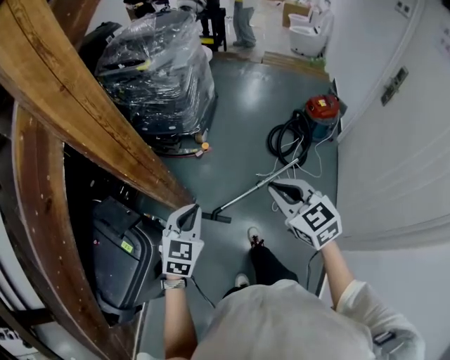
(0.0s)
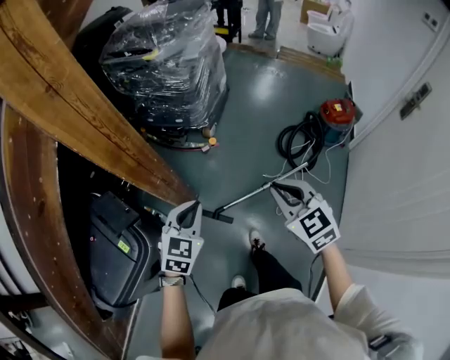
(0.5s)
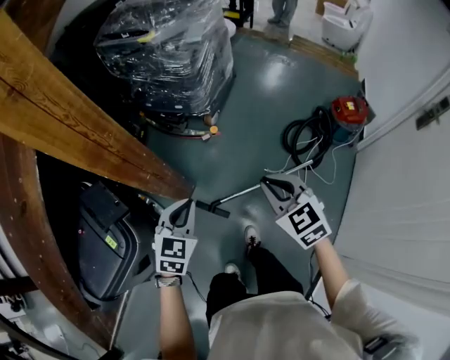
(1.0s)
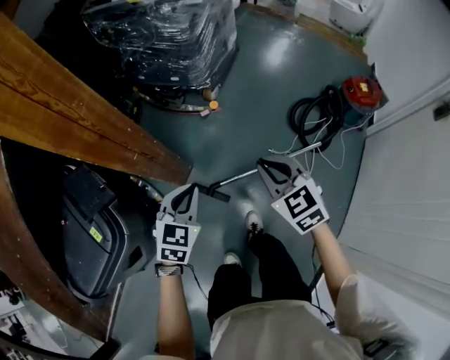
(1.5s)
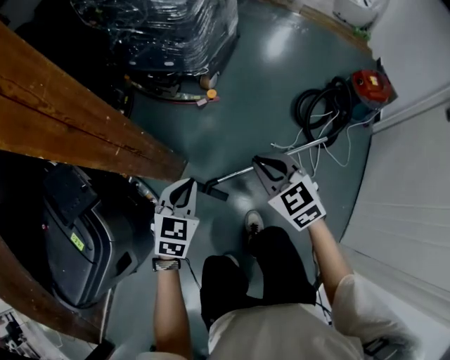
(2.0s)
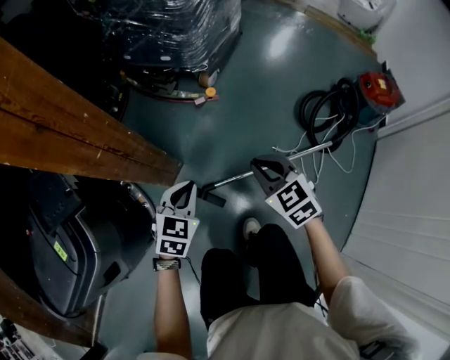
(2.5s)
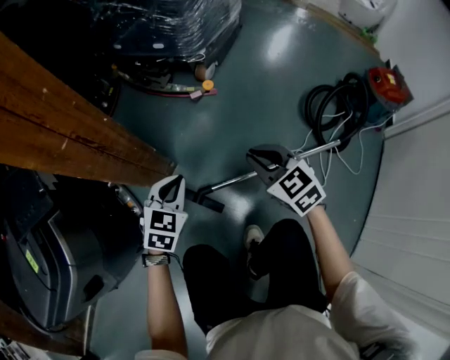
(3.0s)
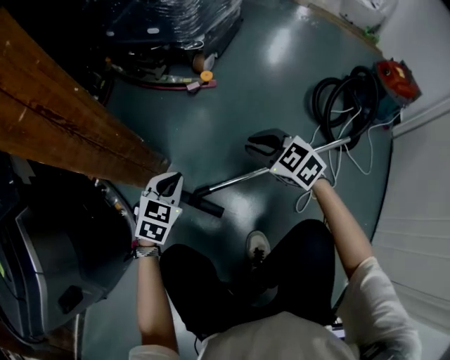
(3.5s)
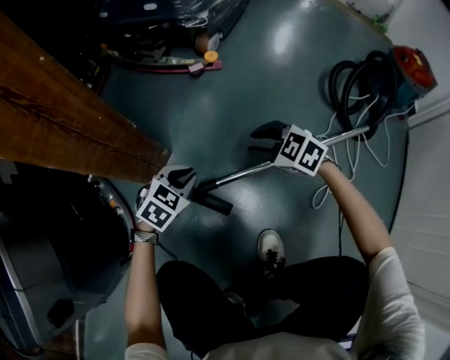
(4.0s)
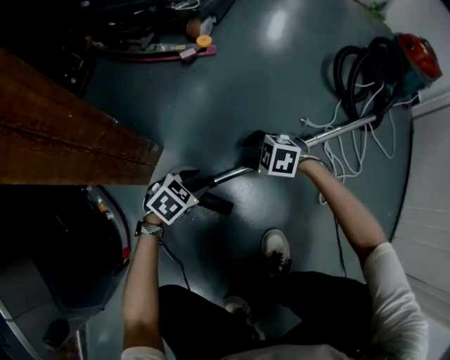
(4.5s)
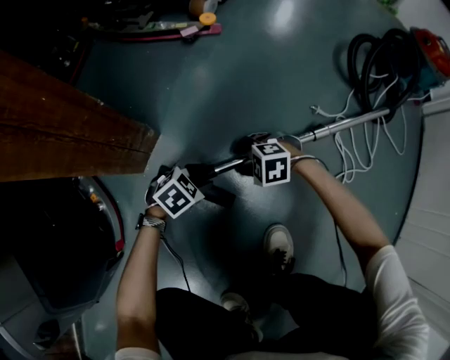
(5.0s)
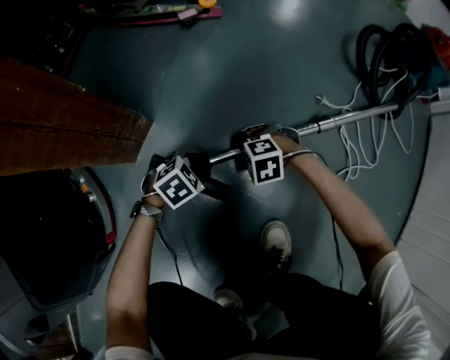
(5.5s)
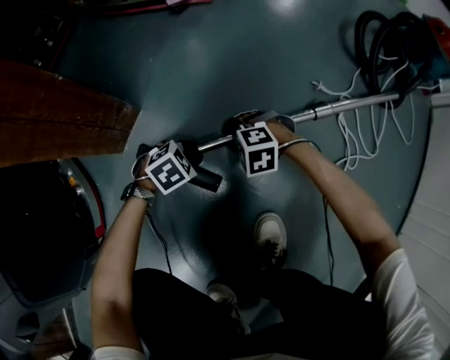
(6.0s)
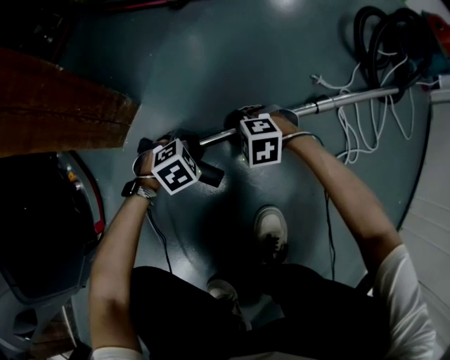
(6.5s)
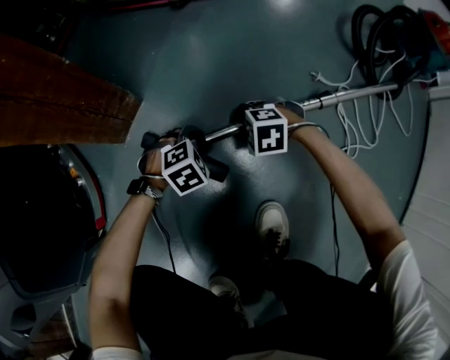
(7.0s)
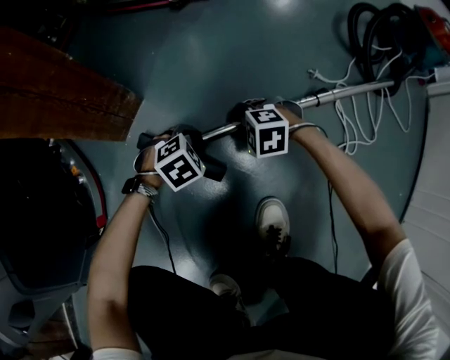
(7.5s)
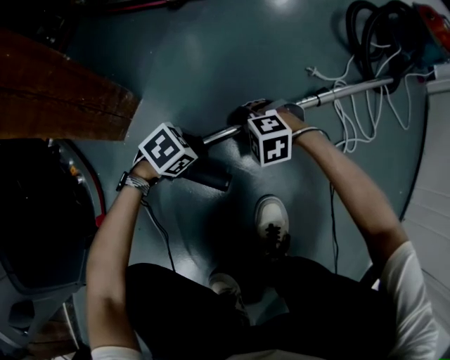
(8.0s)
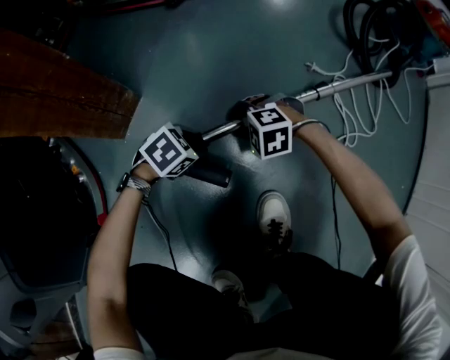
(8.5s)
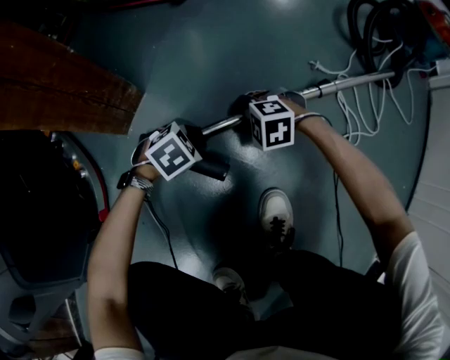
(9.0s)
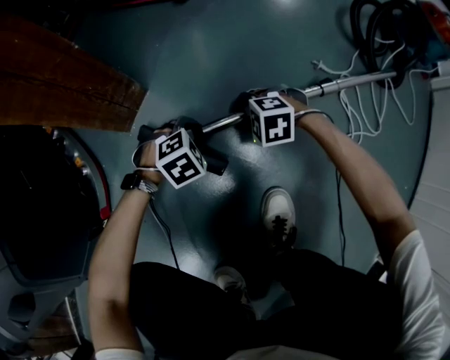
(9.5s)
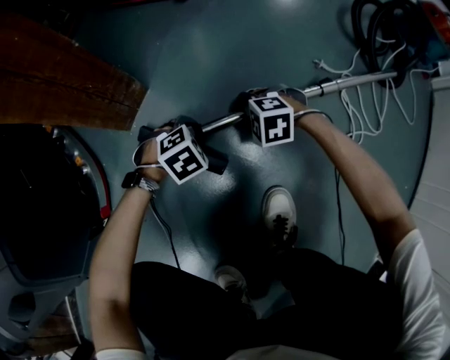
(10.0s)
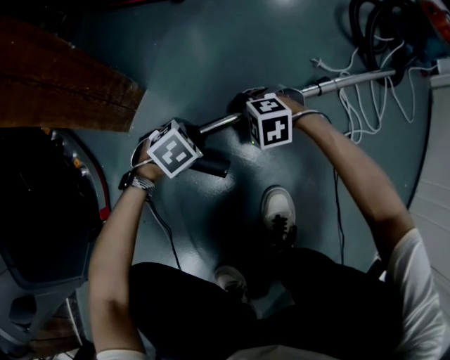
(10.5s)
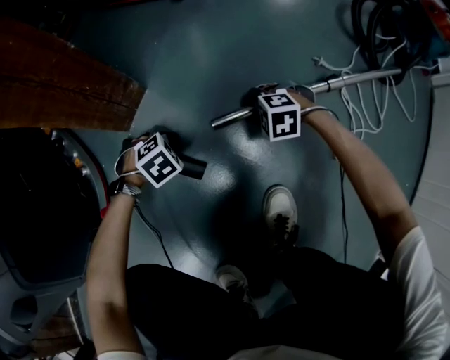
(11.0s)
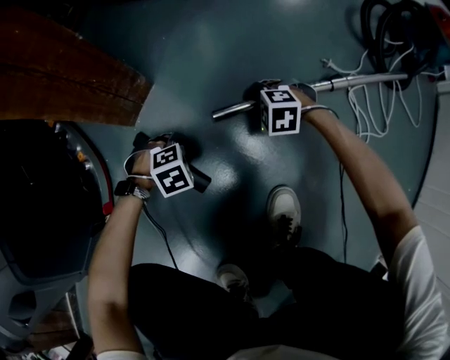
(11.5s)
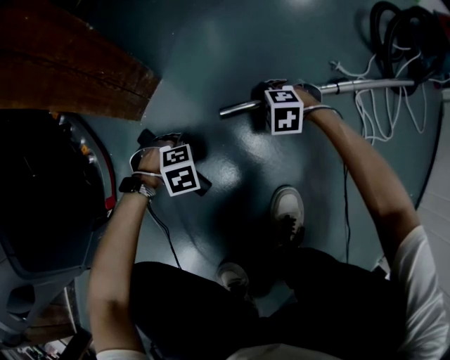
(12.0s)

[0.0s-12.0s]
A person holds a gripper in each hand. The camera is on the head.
0.0s to 2.0s: The grippers both shift downward and forward by roughly 35 cm.
2.0s to 4.0s: The two grippers go roughly 40 cm downward. The right gripper turns by some 30 degrees, and opens its fingers; the left gripper changes its angle by some 20 degrees.
4.0s to 6.0s: The two grippers go some 25 cm downward. The left gripper swivels roughly 30 degrees, and opens its fingers. The right gripper changes its angle by about 40 degrees.
6.0s to 8.0s: The left gripper ends up roughly 5 cm from where it was.
8.0s to 10.0s: The left gripper changes its angle by roughly 30 degrees.
10.0s to 12.0s: The left gripper moves roughly 10 cm; the right gripper shifts by about 5 cm.

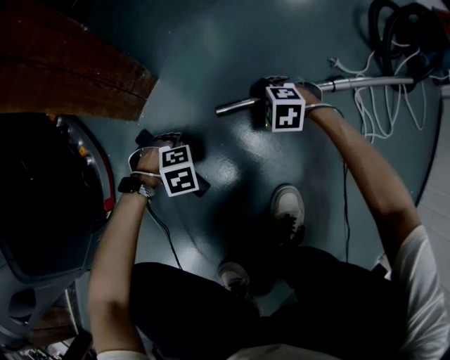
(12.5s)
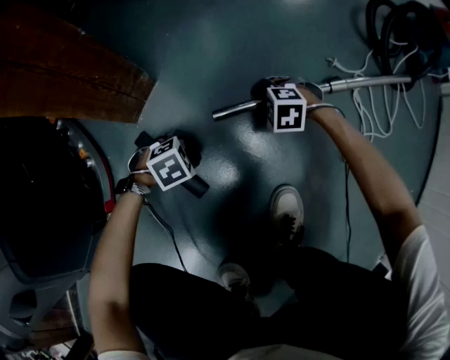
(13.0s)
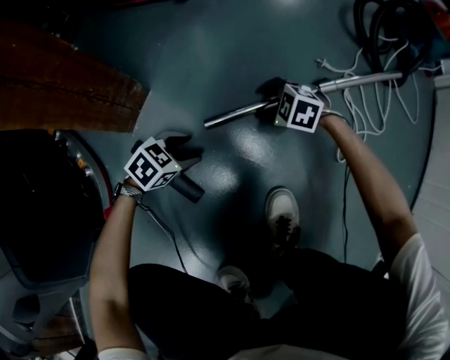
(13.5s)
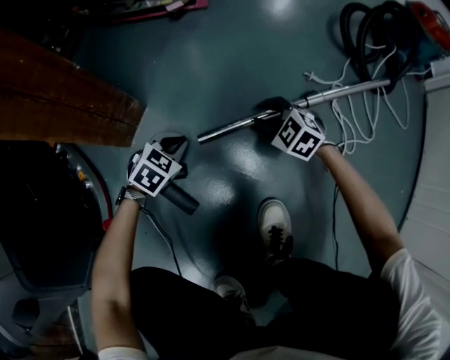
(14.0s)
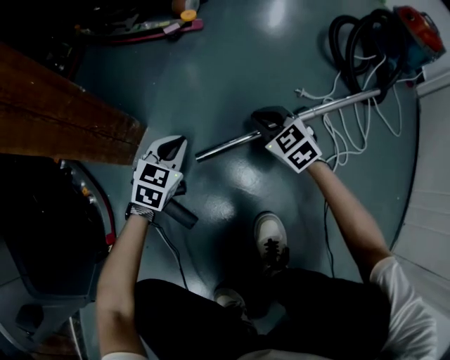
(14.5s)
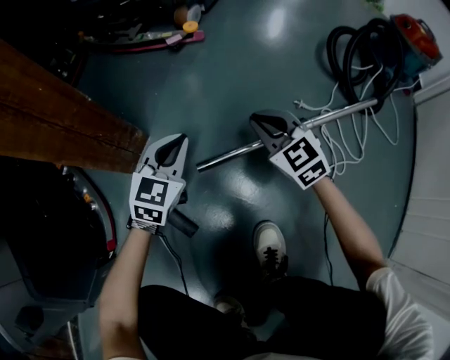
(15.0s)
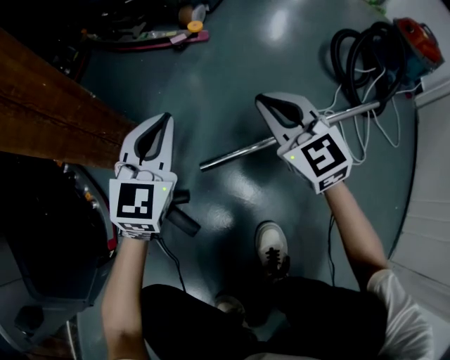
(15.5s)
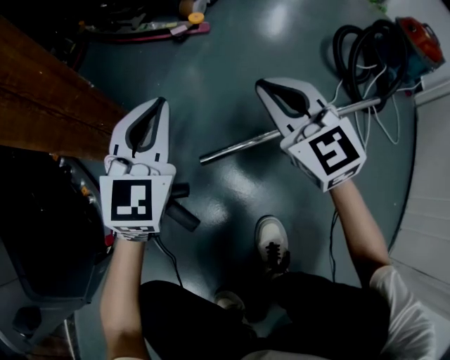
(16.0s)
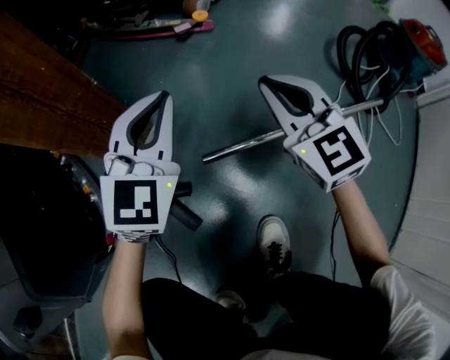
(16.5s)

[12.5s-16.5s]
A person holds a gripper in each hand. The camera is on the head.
12.5s to 14.5s: The left gripper ends up about 20 cm from where it was, points its fingers approximately 50 degrees further upward, and closes up. The right gripper travels upward by some 15 cm, points its fingers approximately 30 degrees further upward, and closes up.
14.5s to 16.5s: Both grippers travel together upward, roughly 20 cm. The left gripper rotates approximately 30 degrees, while the right gripper rotates about 20 degrees.

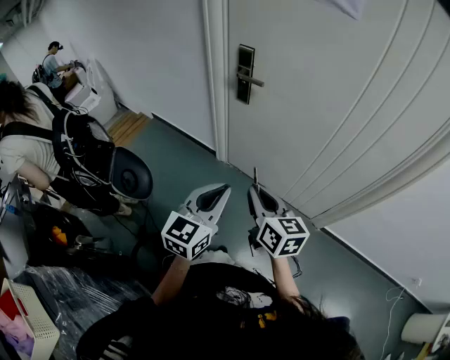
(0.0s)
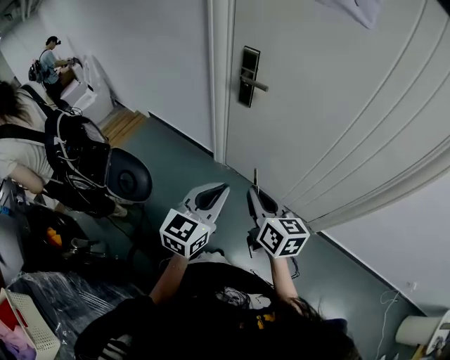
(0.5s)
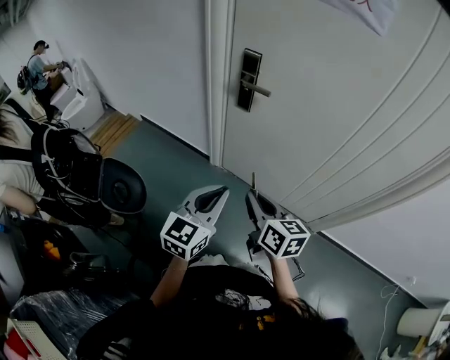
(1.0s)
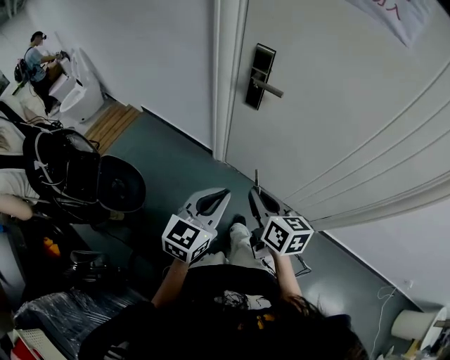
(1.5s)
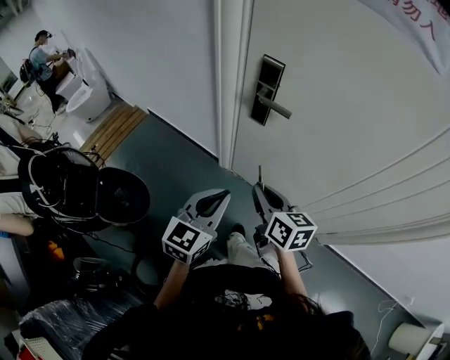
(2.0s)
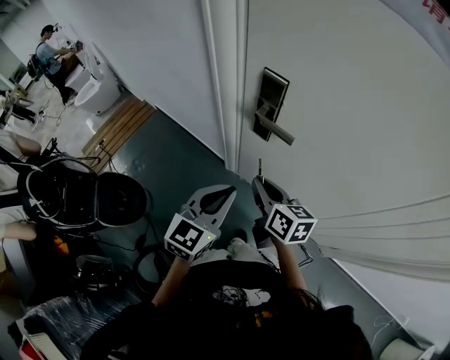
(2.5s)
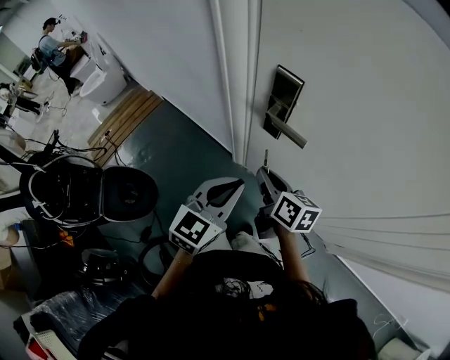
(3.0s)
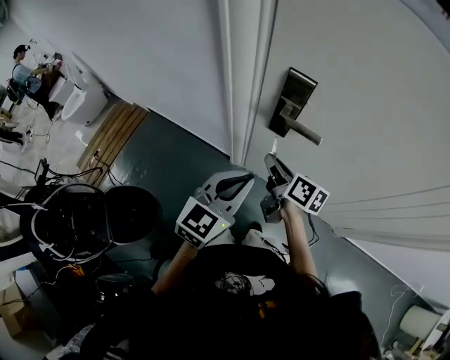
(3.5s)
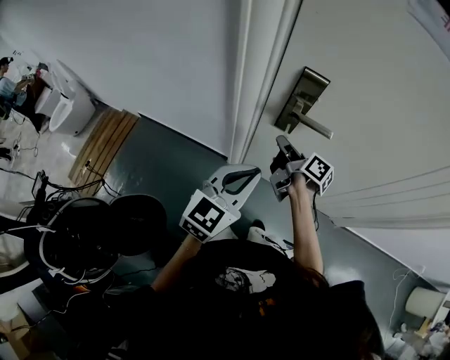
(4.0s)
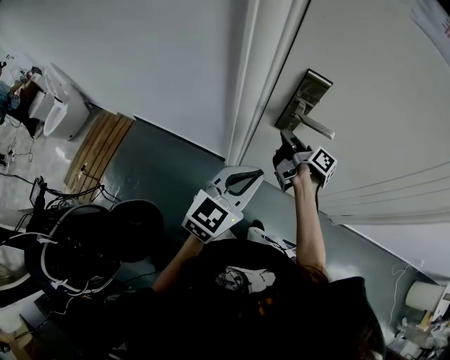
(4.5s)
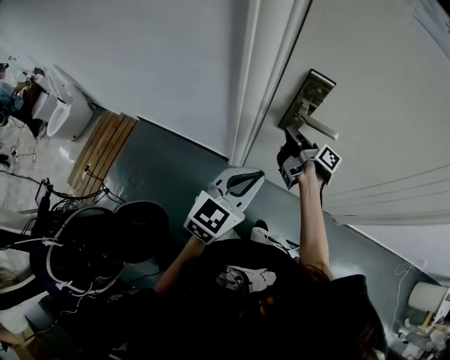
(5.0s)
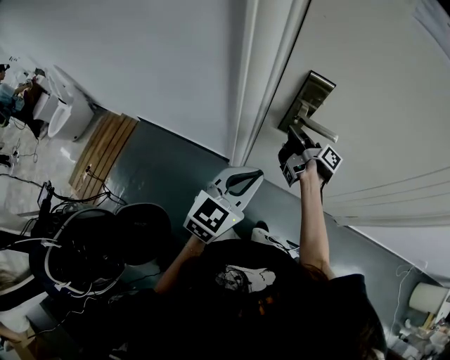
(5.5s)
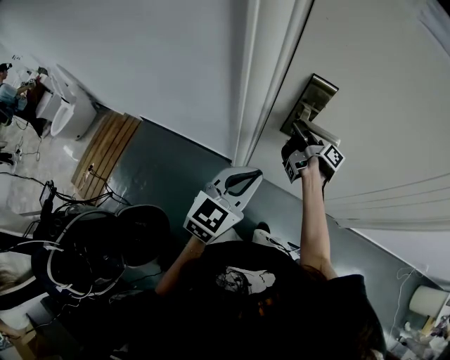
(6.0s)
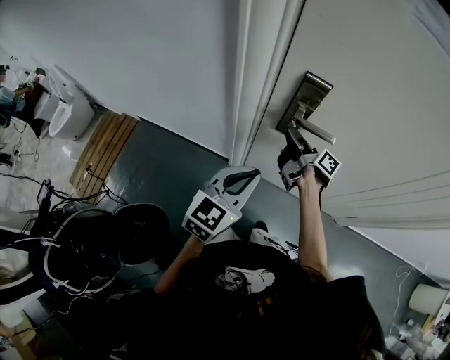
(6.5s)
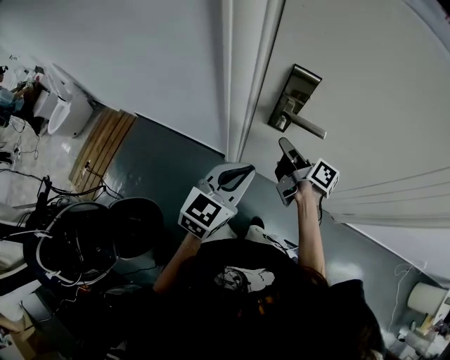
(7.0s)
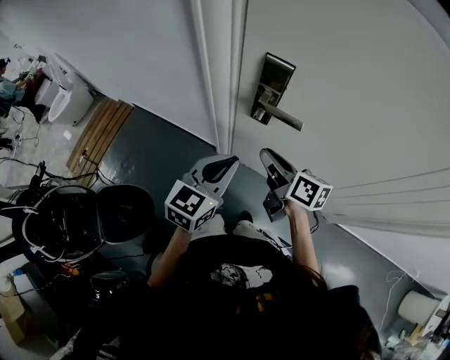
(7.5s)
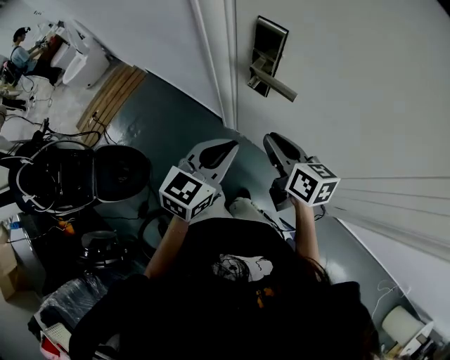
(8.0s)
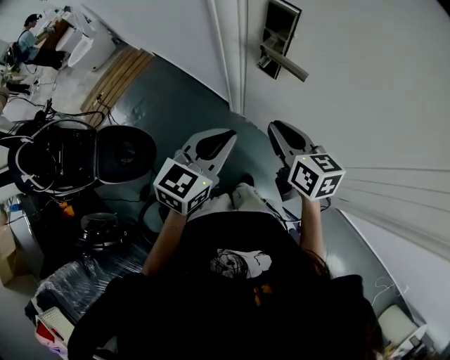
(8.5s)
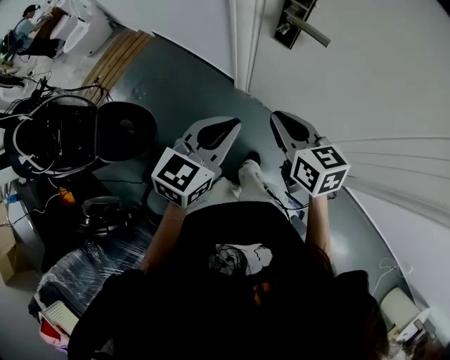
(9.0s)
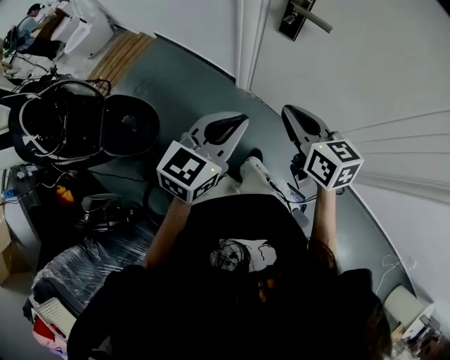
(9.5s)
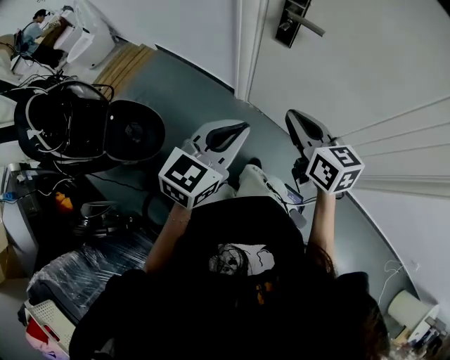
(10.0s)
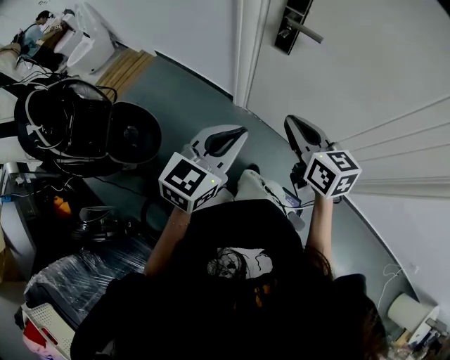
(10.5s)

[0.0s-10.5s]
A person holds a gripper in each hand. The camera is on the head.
0.0s to 2.0s: The grippers both shift forward by some 25 cm.
2.0s to 4.0s: The left gripper heads forward and to the left, covering roughly 15 cm, and changes its angle by about 20 degrees; the right gripper is displaced forward by some 25 cm, and twists about 50 degrees clockwise, seen from behind.
4.0s to 6.5s: The right gripper travels forward by some 5 cm.
6.5s to 8.5s: The right gripper is displaced backward by some 20 cm, and rotates around the line of its fingers by approximately 60 degrees, counterclockwise from behind. Meanwhile the left gripper heads to the right and backward, covering about 10 cm, and rotates some 20 degrees.
8.5s to 10.5s: The two grippers go about 15 cm backward.
